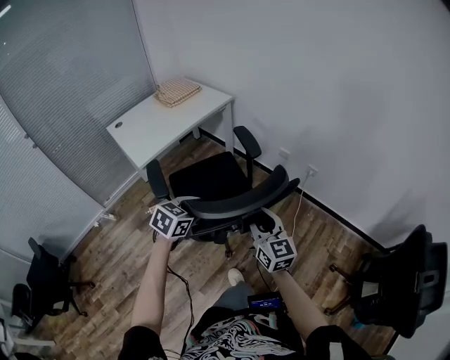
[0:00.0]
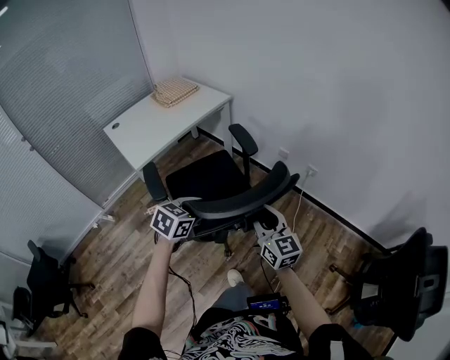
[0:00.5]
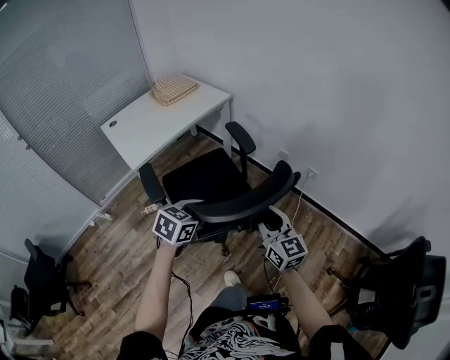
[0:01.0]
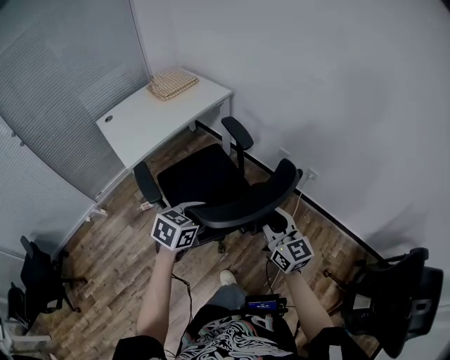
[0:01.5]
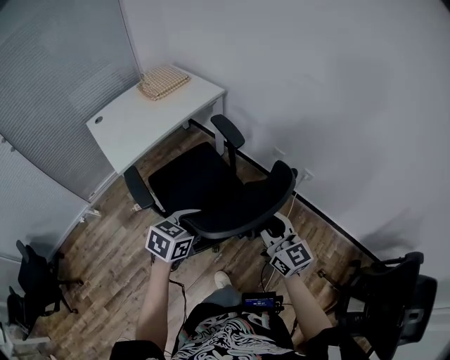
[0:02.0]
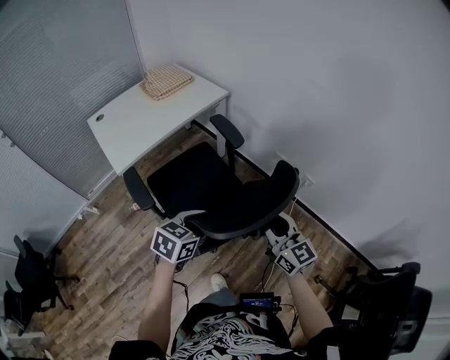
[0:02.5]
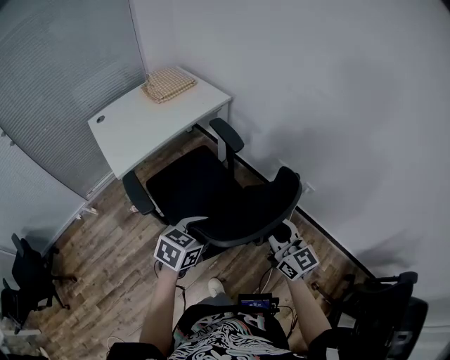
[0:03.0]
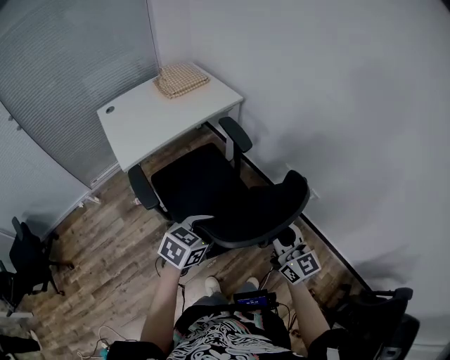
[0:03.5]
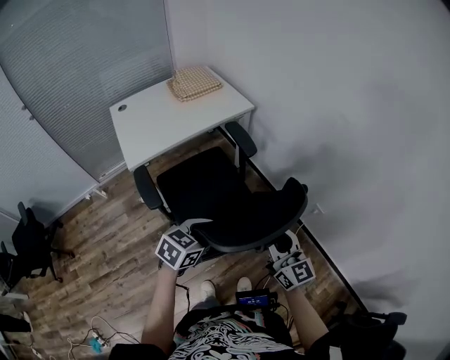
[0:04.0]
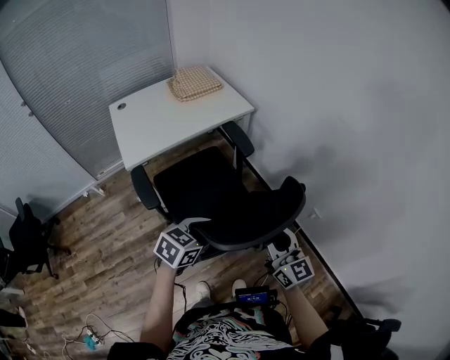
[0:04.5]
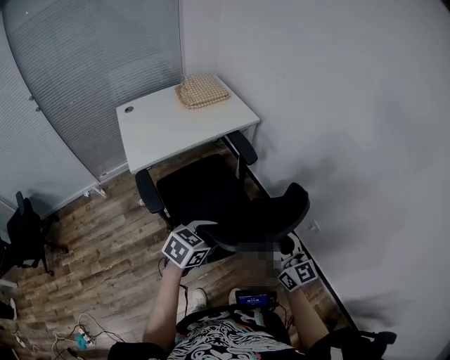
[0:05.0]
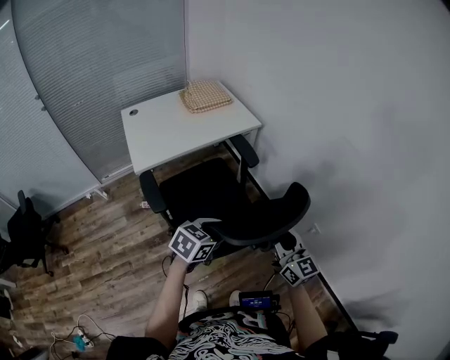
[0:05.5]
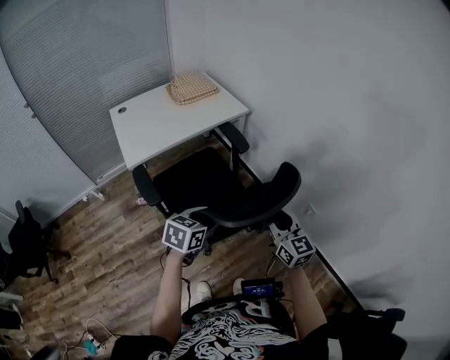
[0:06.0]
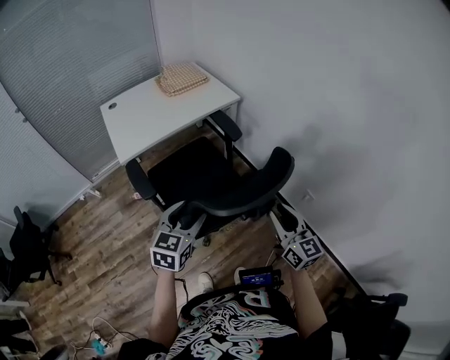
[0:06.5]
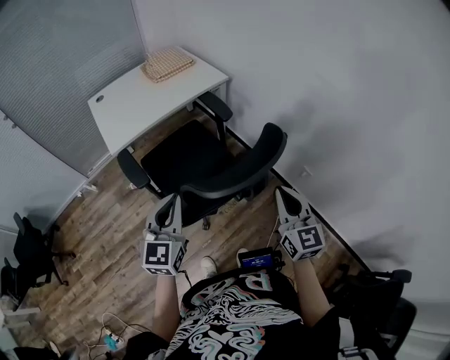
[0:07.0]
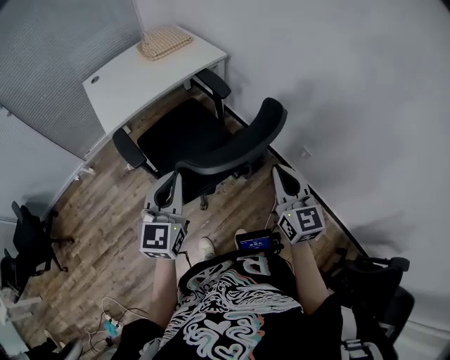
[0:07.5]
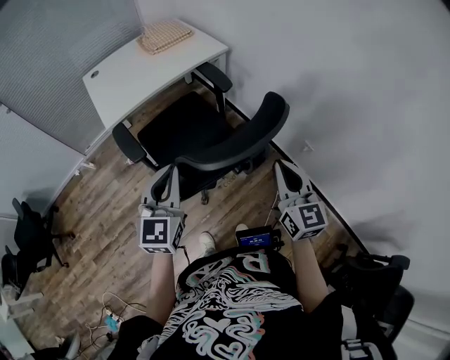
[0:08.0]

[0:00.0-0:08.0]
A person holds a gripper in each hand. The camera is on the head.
0:00.0 to 0:02.0: Both grippers travel together forward, some 10 cm.
0:02.0 to 0:04.0: Both grippers travel together forward, about 10 cm.
0:04.0 to 0:06.0: The grippers stay close to where they were, moving slightly.
0:06.0 to 0:08.0: The left gripper moves upward, roughly 10 cm, swivels some 40 degrees, and closes, while the right gripper travels backward by some 5 cm, and closes.

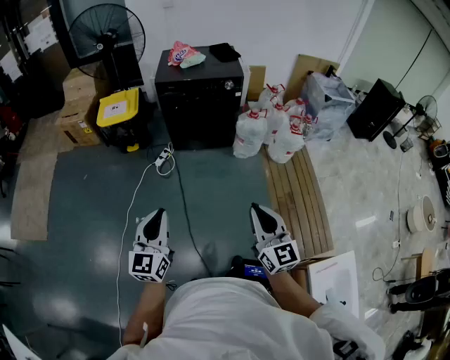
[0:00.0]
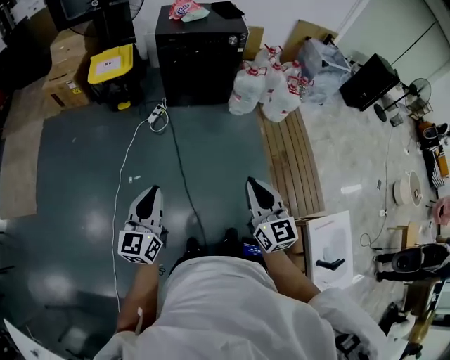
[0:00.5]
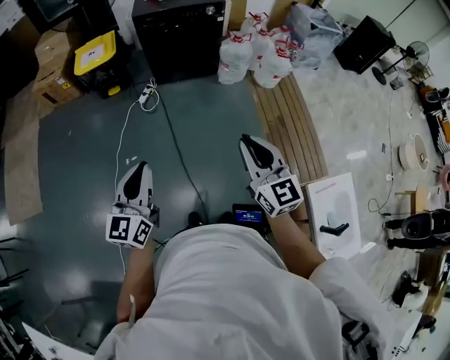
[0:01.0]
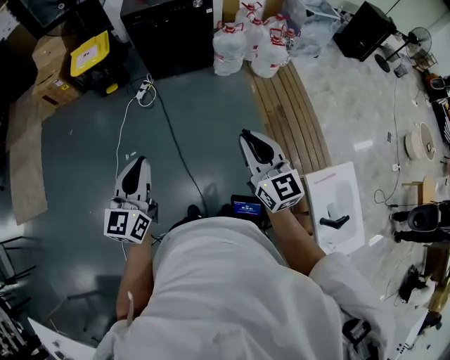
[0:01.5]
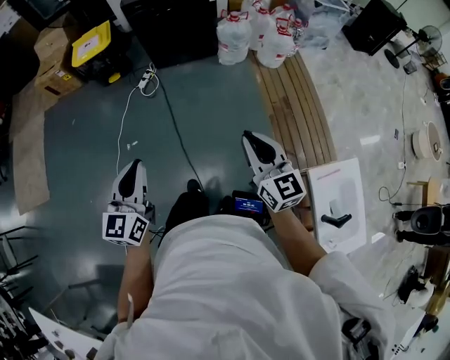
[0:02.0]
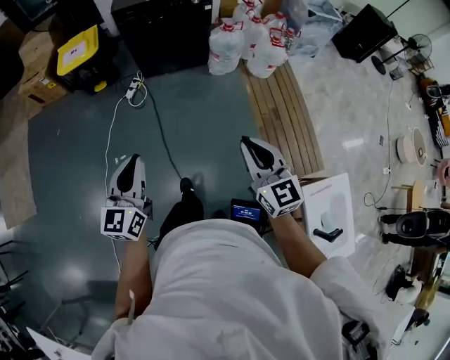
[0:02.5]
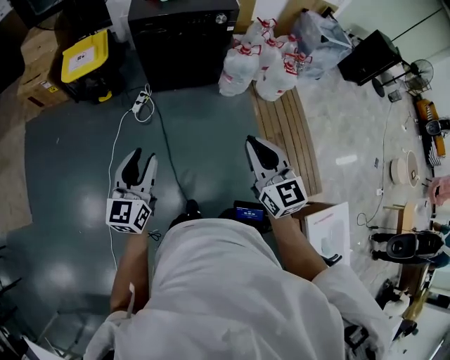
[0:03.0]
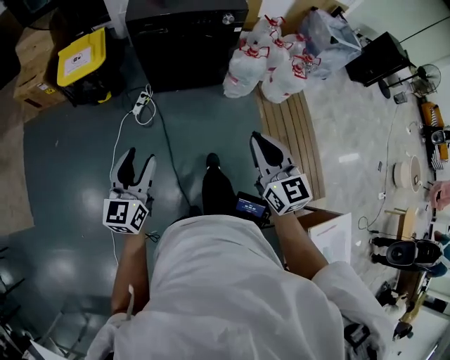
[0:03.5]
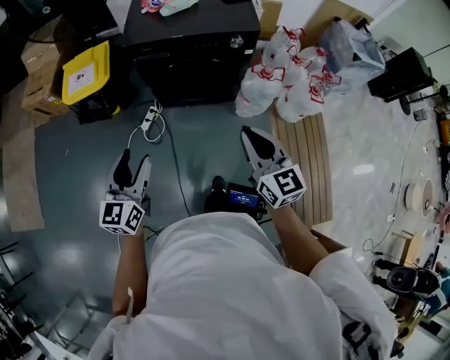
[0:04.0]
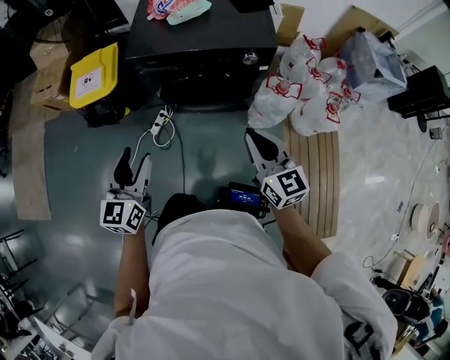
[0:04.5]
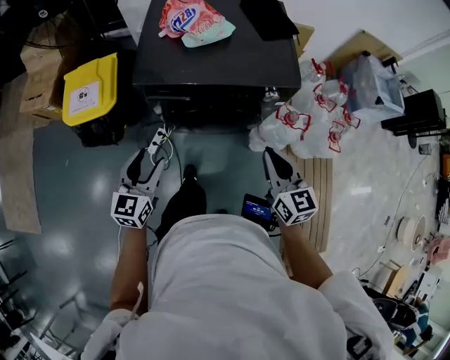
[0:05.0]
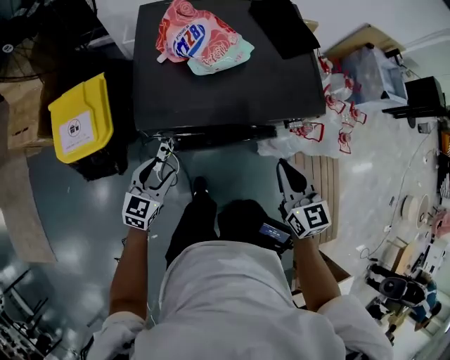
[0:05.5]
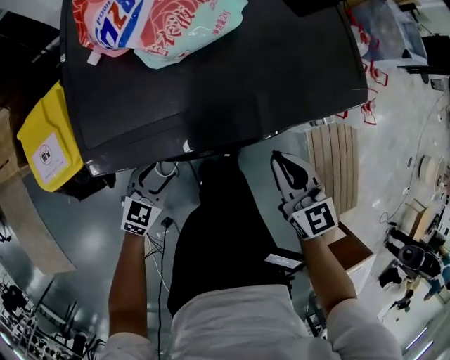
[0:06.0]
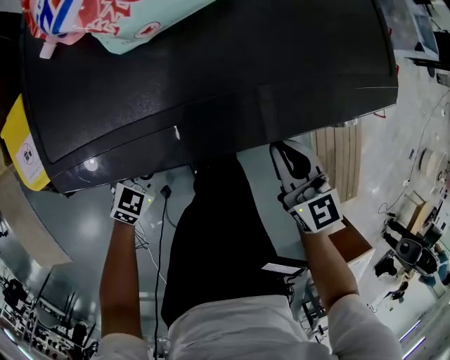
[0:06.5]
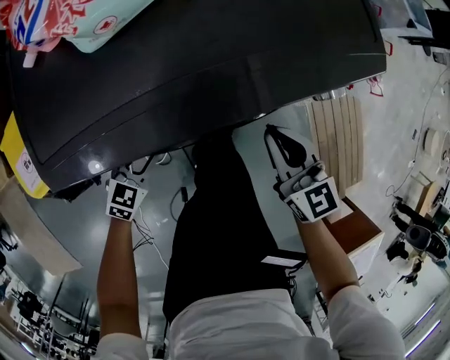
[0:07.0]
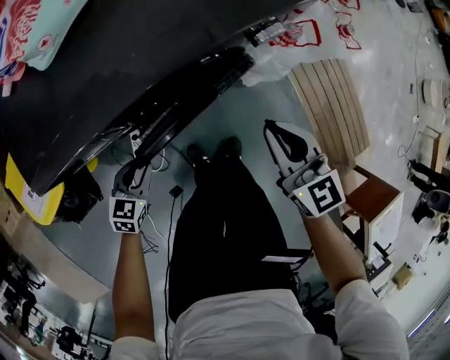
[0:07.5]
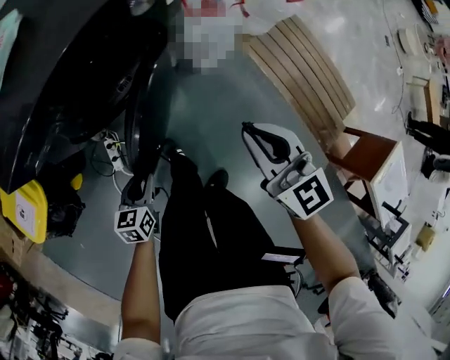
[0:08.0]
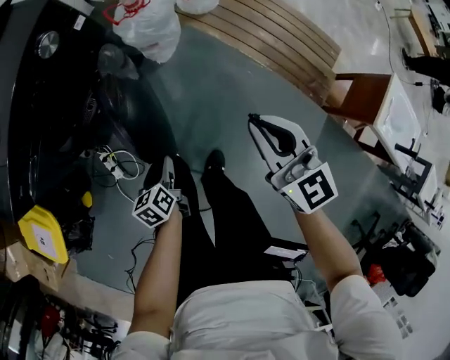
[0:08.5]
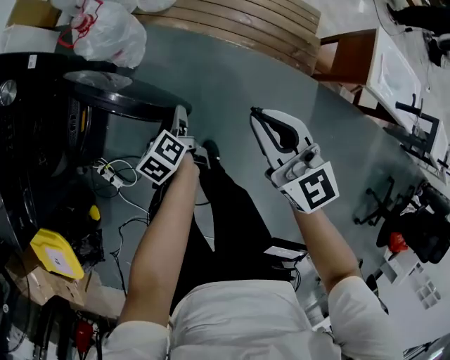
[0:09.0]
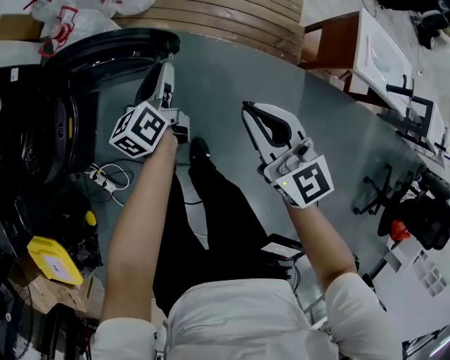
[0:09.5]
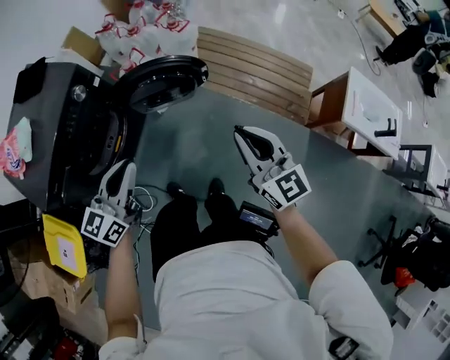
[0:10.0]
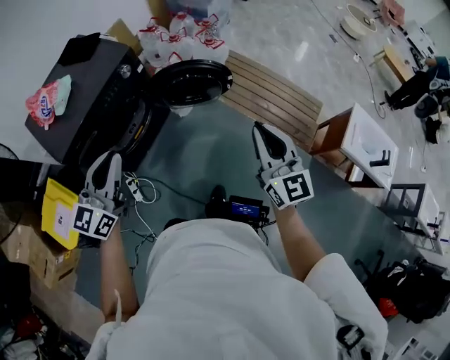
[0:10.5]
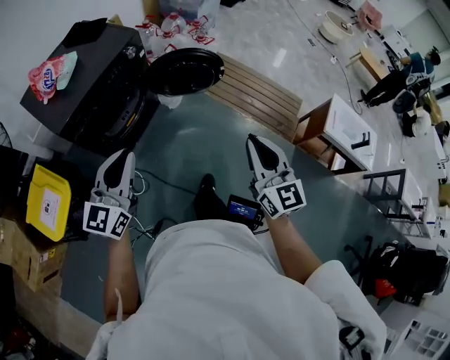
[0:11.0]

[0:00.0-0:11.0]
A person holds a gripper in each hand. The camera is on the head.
0:00.0 to 0:02.0: The right gripper goes roughly 10 cm backward and downward, and travels to the left and back again, approximately 10 cm each way. Meanwhile the left gripper goes approximately 15 cm backward.
0:02.0 to 0:03.5: The grippers both shift forward by about 35 cm. The left gripper opens up.
0:03.5 to 0:05.5: The pair of grippers is taken forward, some 60 cm. The left gripper turns by some 30 degrees.
0:05.5 to 0:07.5: Both grippers travel together downward, about 20 cm. The left gripper turns by about 20 degrees, and closes its fingers.
0:07.5 to 0:09.0: Both grippers are carried approximately 50 cm. The left gripper changes its angle by some 40 degrees; the right gripper rotates about 40 degrees.
0:09.0 to 0:11.0: The right gripper travels backward and upward by approximately 40 cm; the left gripper travels upward, backward and to the left by approximately 70 cm, angles its fingers upward, by approximately 40 degrees, and closes up.

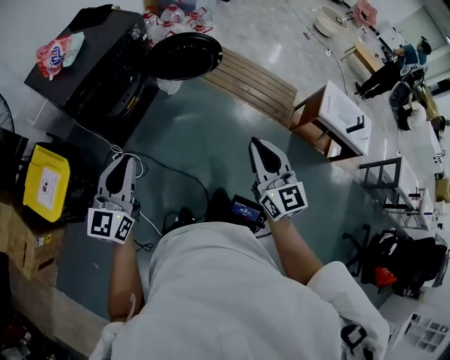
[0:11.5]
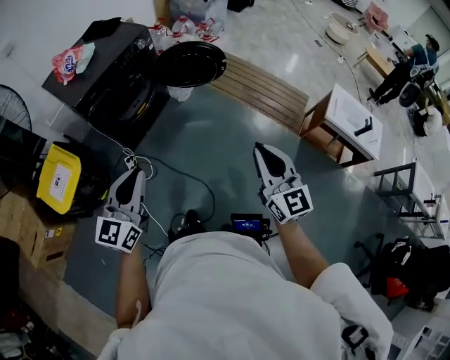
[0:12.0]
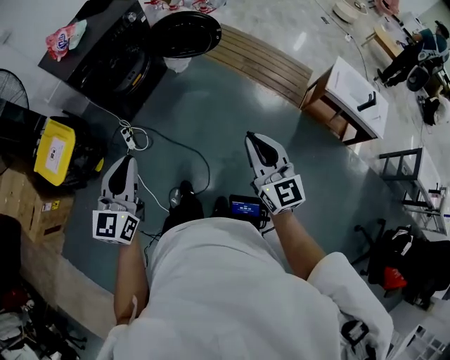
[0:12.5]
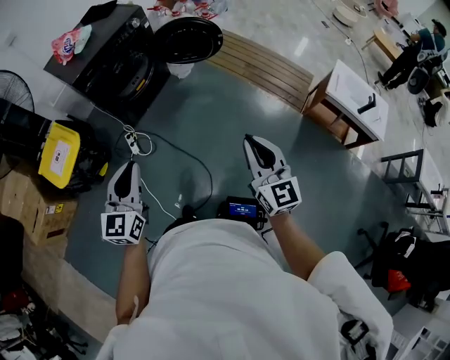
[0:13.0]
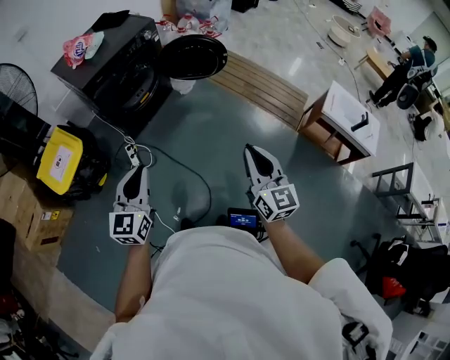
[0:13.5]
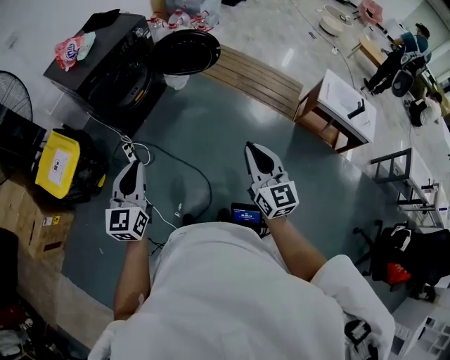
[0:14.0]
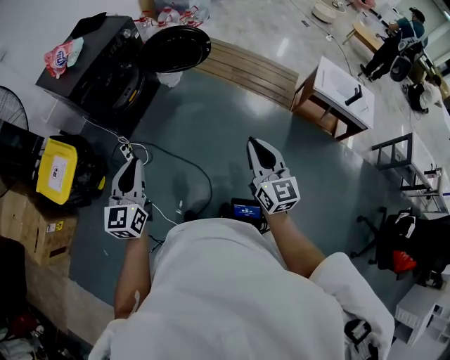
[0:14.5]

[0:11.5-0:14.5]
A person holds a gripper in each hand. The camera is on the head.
0:11.5 to 0:13.0: The grippers both shift backward and to the right by roughly 20 cm.

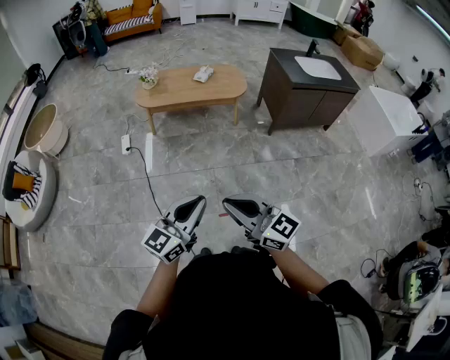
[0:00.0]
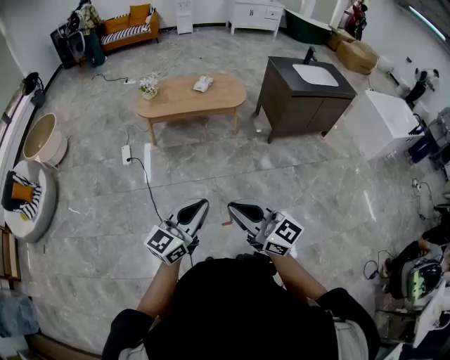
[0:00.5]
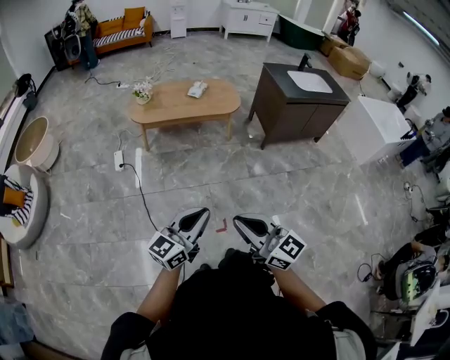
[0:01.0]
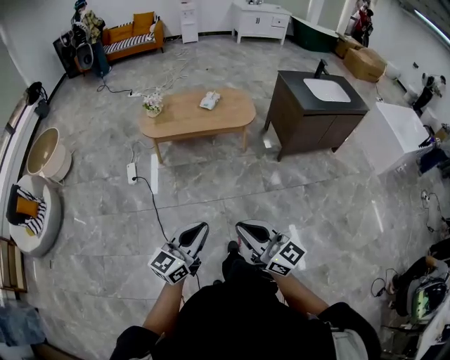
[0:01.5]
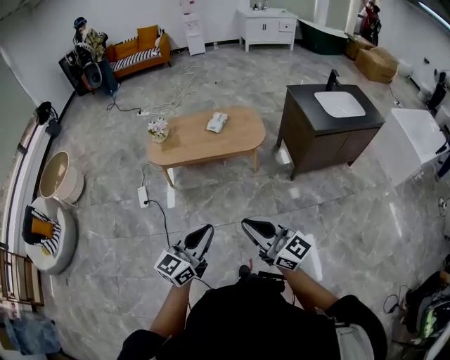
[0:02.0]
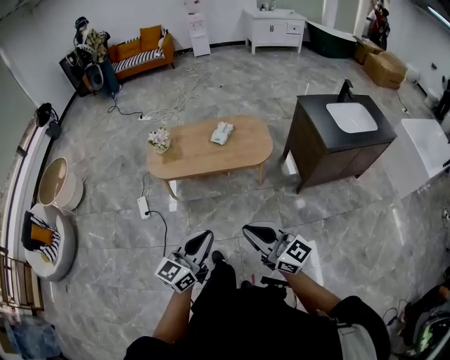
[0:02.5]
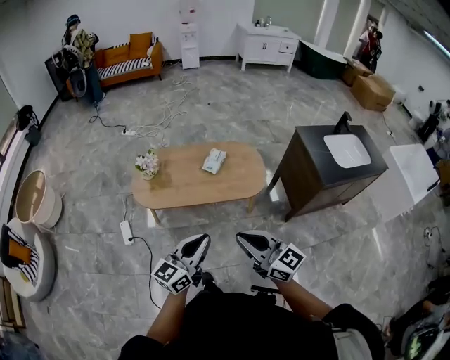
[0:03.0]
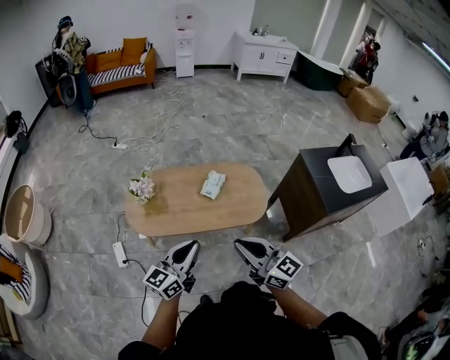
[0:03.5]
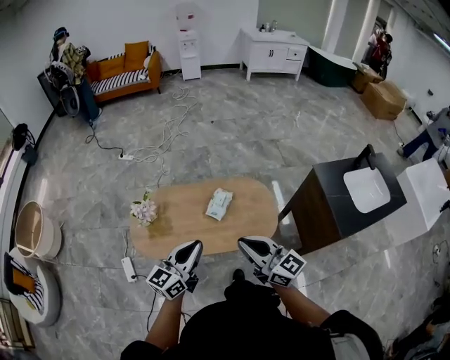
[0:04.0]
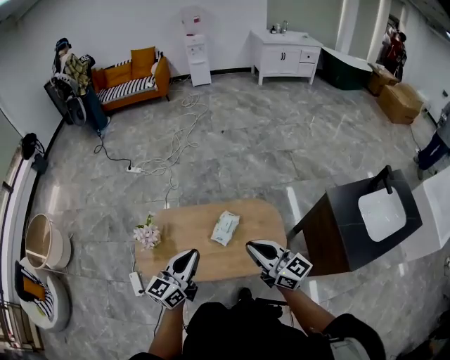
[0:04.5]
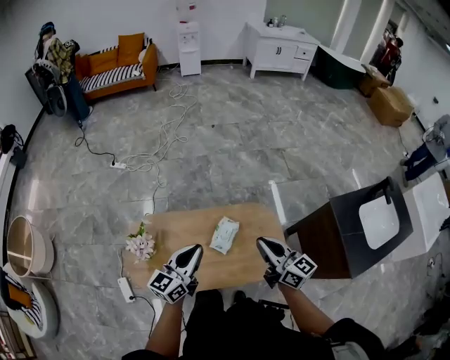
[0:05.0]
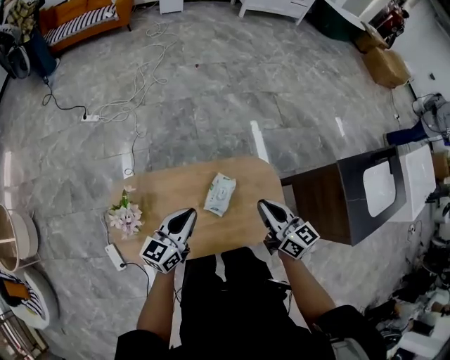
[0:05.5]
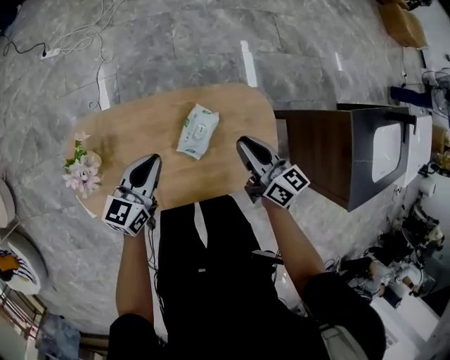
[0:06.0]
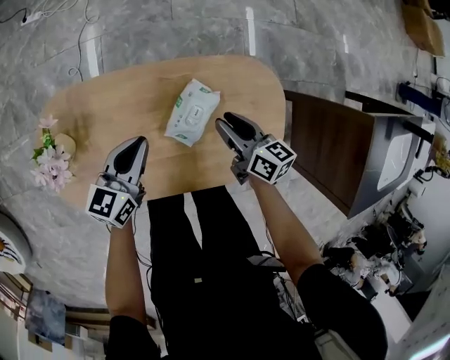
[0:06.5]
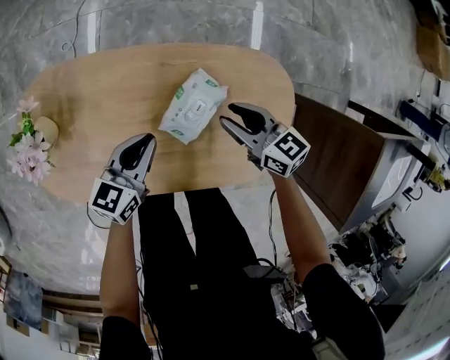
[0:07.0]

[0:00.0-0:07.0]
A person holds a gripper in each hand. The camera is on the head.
0:00.0 to 0:02.0: The grippers both shift forward by some 30 cm.
0:02.0 to 0:03.5: The pair of grippers is taken forward, some 50 cm.
0:03.5 to 0:05.0: The two grippers travel together, forward, about 40 cm.
0:05.0 to 0:07.0: Both grippers travel together downward, some 40 cm. The left gripper turns by about 30 degrees. Meanwhile the right gripper turns by about 40 degrees, and opens its fingers.
